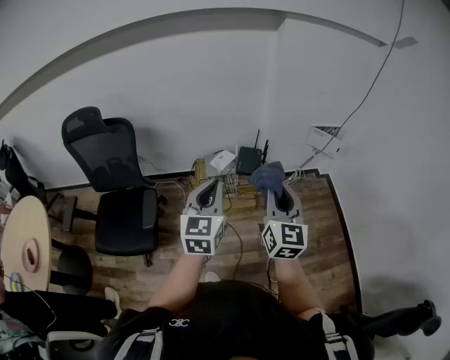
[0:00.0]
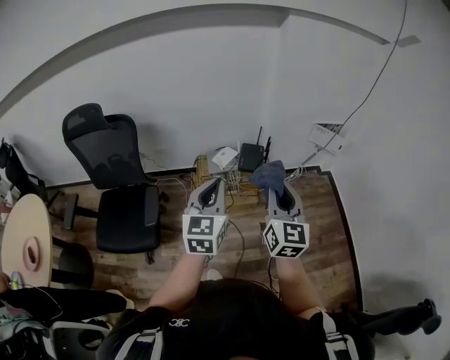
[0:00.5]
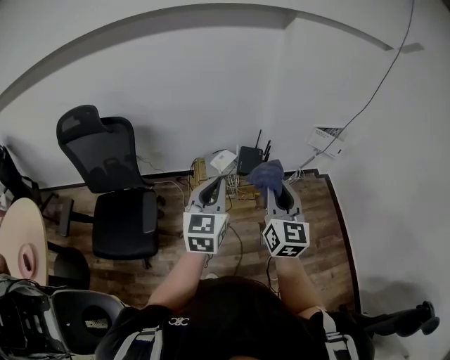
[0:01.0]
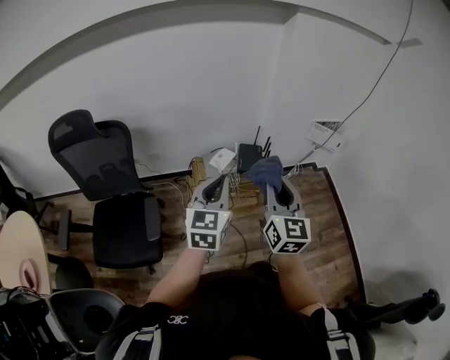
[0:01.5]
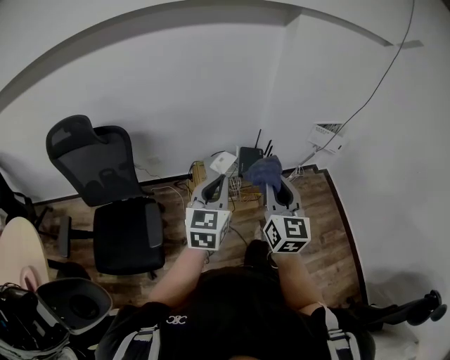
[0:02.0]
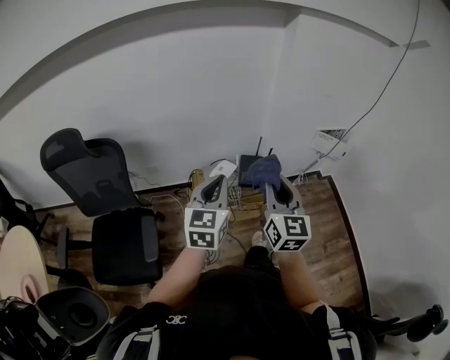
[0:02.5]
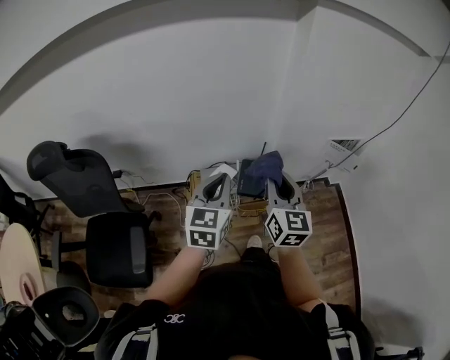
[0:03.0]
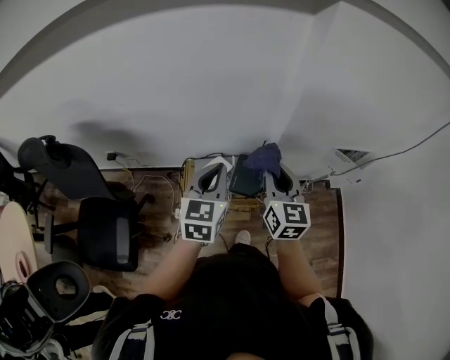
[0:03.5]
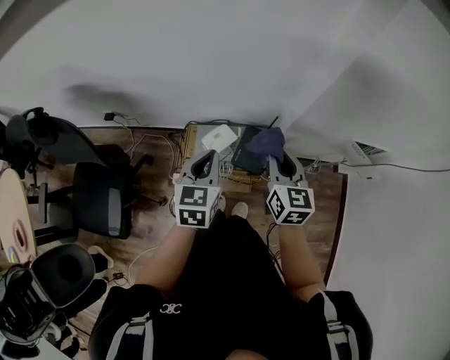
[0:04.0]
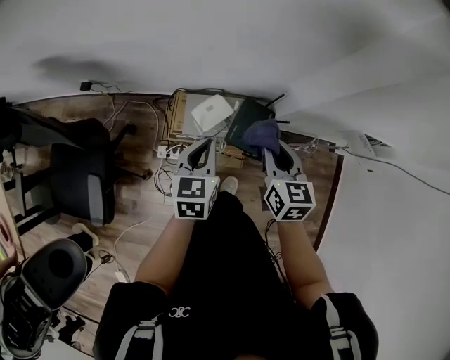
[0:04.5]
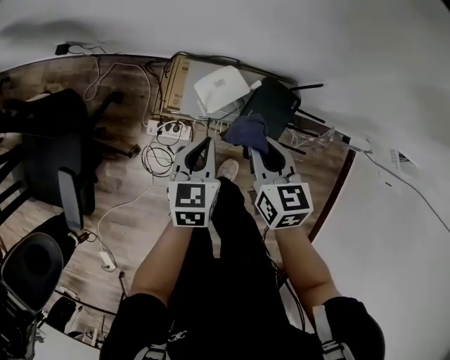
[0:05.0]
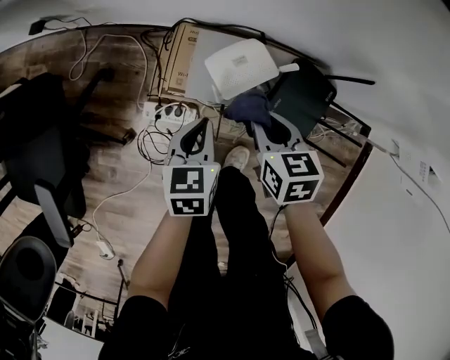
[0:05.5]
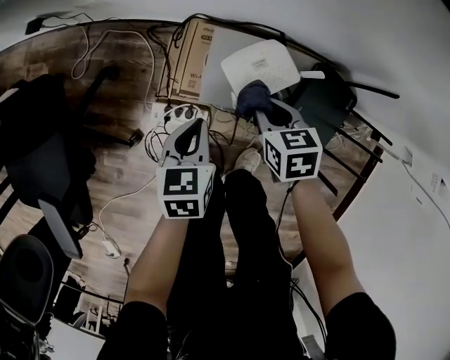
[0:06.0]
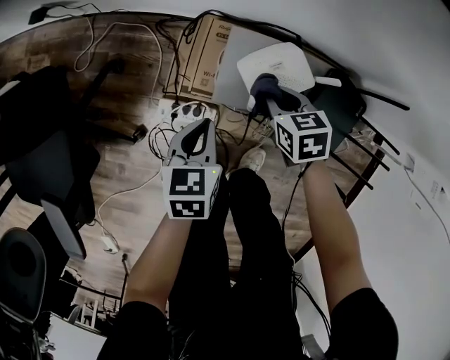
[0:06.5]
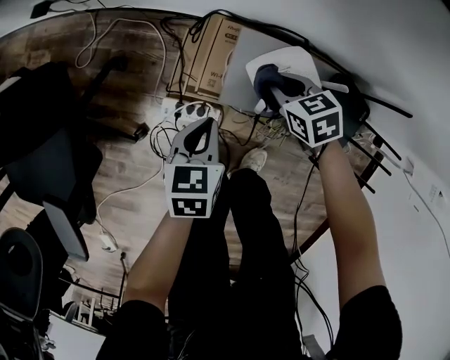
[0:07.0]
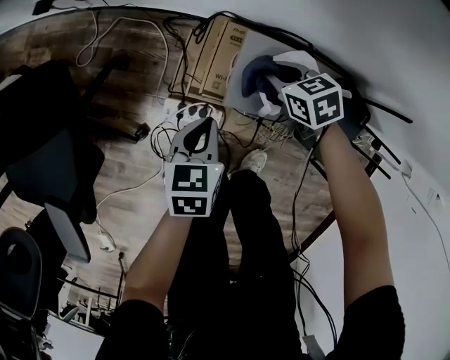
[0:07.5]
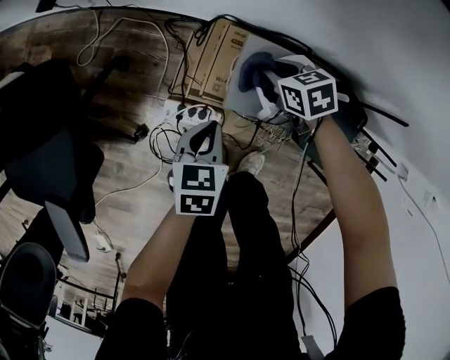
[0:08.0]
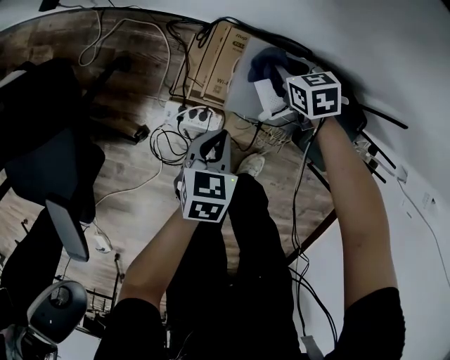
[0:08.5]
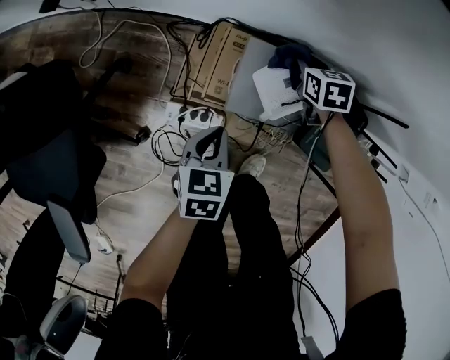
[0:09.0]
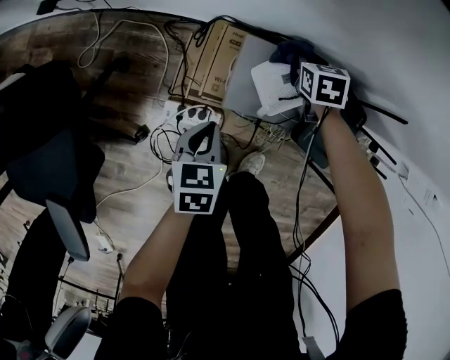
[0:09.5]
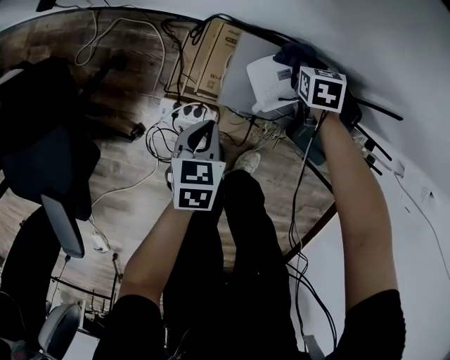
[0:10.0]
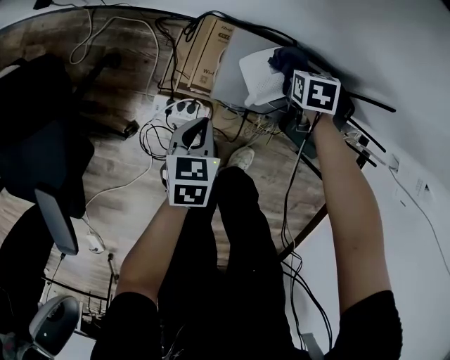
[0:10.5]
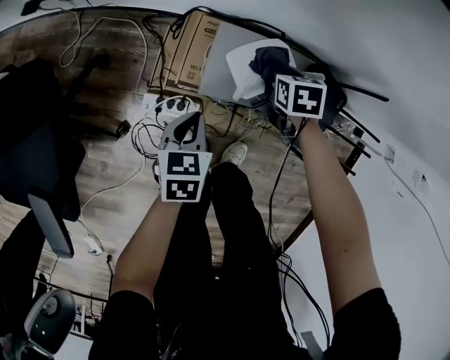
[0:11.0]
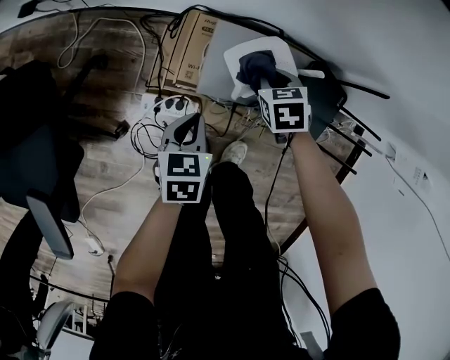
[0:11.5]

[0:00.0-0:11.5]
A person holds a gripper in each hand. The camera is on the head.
0:00.0 to 0:02.0: The right gripper goes roughly 15 cm to the left and forward, while the left gripper travels forward and to the left by some 10 cm.
0:02.0 to 0:04.0: Both grippers move forward, approximately 40 cm. The left gripper swivels about 30 degrees. The right gripper turns by some 30 degrees.
0:04.0 to 0:06.0: The grippers both shift downward by roughly 50 cm. The right gripper tilts its fingers approximately 40 degrees downward. The left gripper changes its angle by approximately 30 degrees.
0:06.0 to 0:07.5: The right gripper shifts some 10 cm forward, and changes its angle by about 20 degrees. The left gripper shifts by roughly 5 cm.
0:07.5 to 0:09.5: The right gripper moves approximately 15 cm, and swivels approximately 30 degrees.
0:09.5 to 0:11.5: The right gripper heads backward, covering about 10 cm.

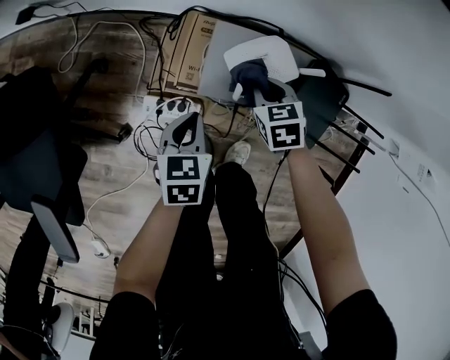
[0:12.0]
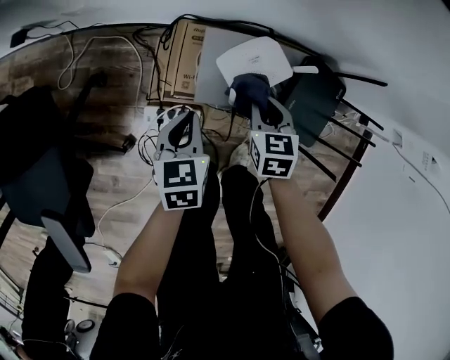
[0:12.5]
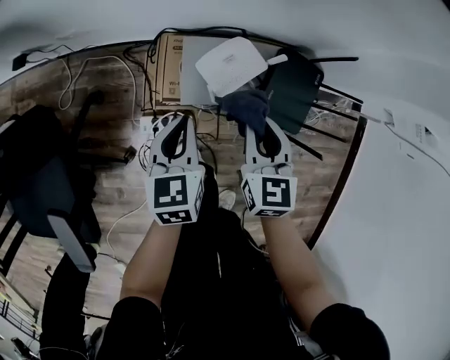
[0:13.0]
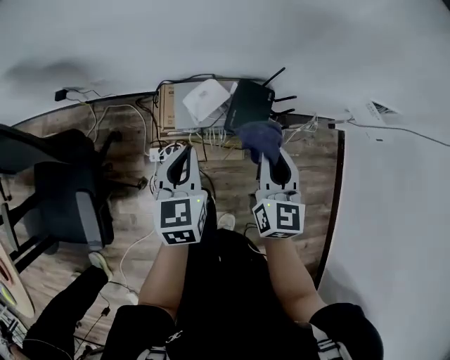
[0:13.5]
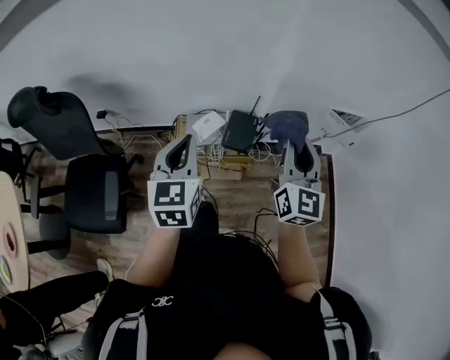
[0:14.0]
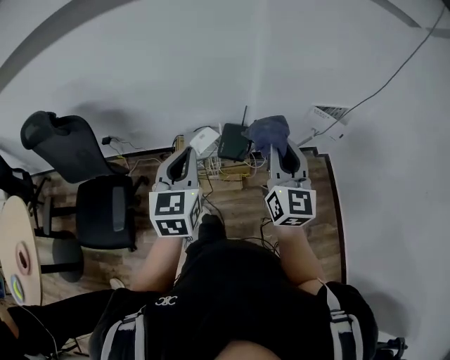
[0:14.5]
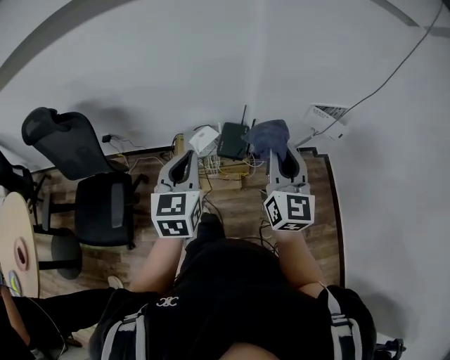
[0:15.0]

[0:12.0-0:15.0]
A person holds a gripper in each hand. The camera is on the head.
0:12.0 to 0:13.5: The two grippers go some 40 cm upward. The right gripper angles its fingers upward, by roughly 40 degrees. The left gripper changes its angle by approximately 20 degrees.
0:13.5 to 0:15.0: The left gripper travels upward and backward by some 40 cm, and turns by roughly 20 degrees; the right gripper travels upward, backward and to the right by some 40 cm, and swivels roughly 30 degrees.

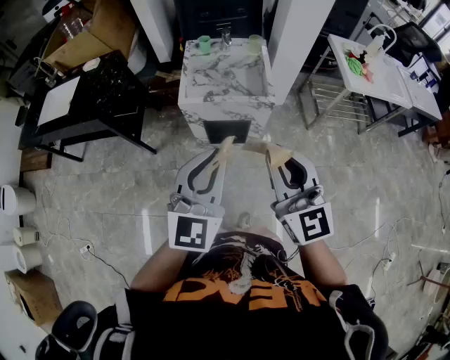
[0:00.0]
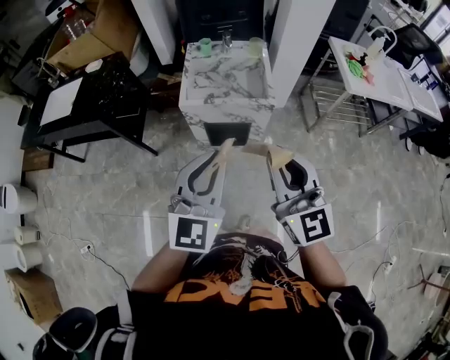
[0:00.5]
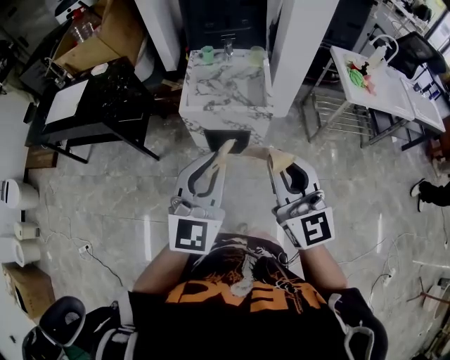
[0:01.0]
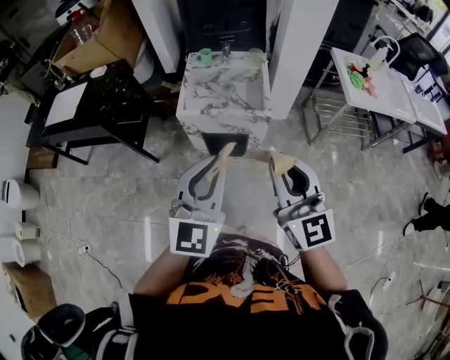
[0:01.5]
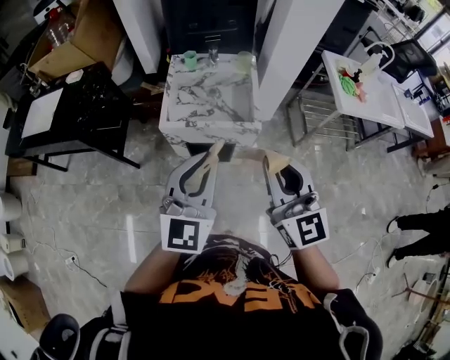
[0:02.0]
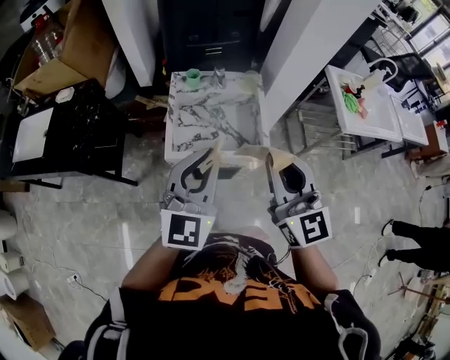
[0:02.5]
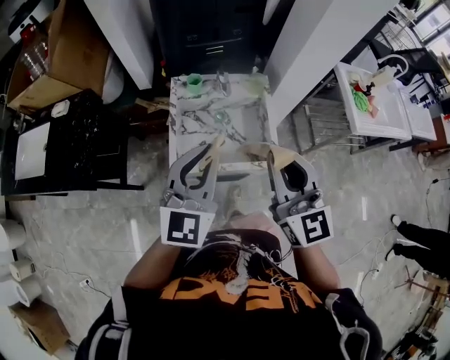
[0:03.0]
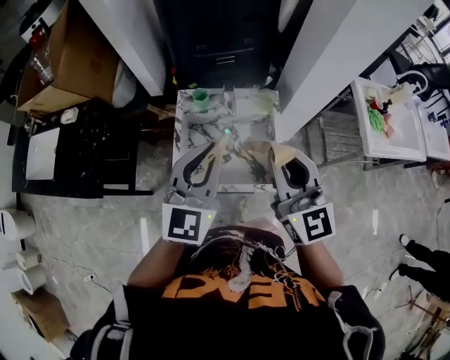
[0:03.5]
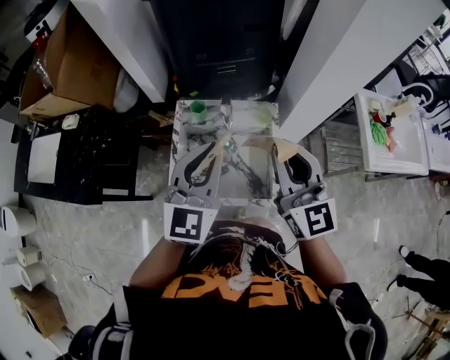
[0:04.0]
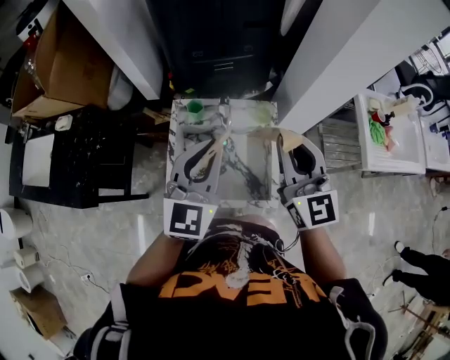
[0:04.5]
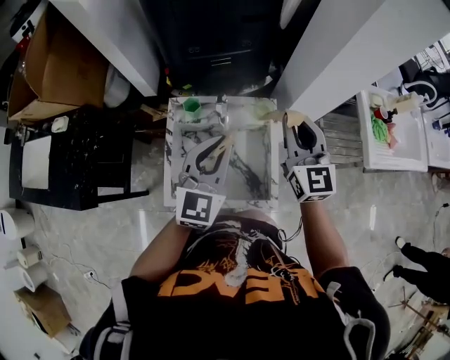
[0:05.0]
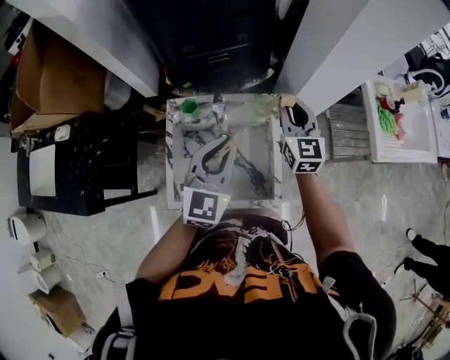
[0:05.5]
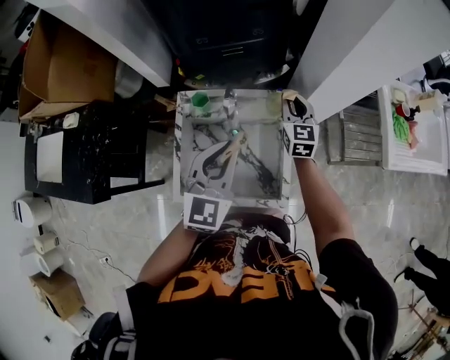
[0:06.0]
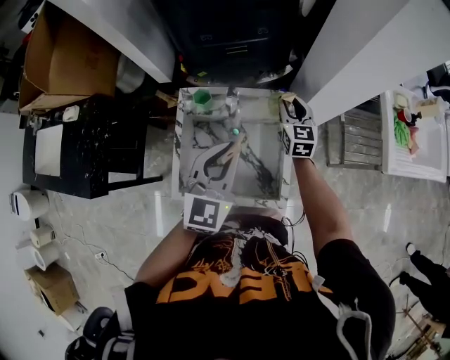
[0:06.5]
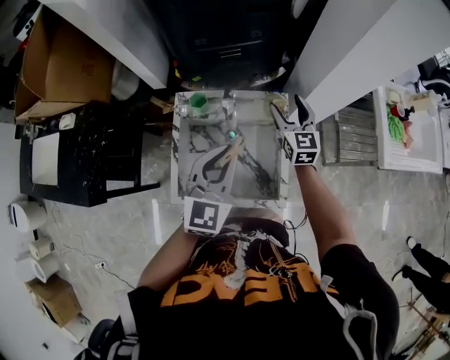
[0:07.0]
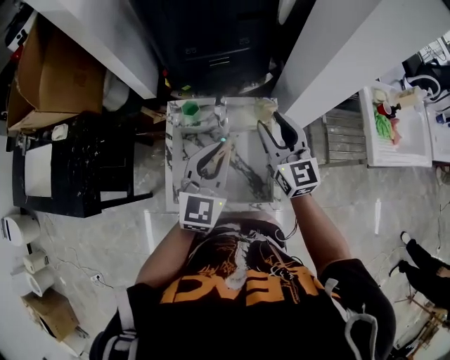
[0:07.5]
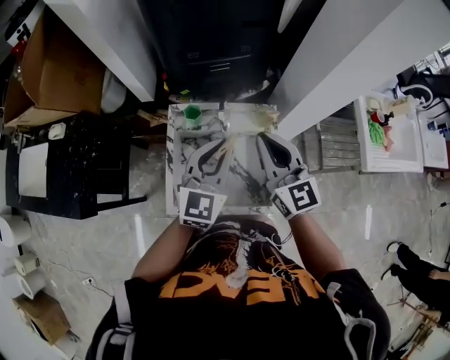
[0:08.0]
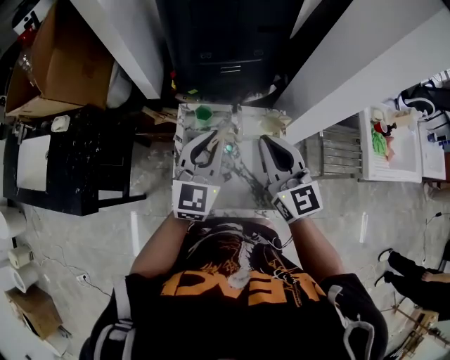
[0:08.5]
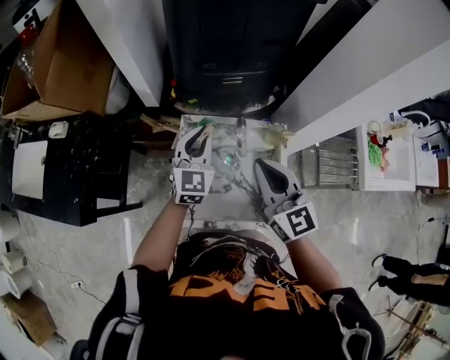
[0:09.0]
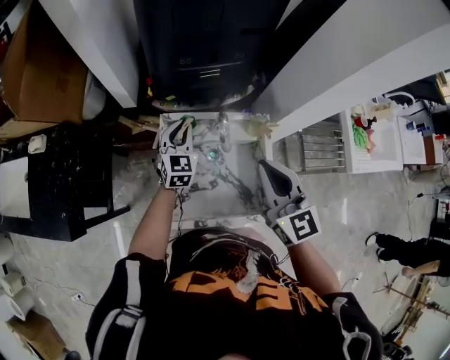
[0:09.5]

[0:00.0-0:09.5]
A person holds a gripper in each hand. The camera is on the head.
0:00.0 to 0:02.0: The left gripper heads forward, covering about 10 cm. Meanwhile the right gripper travels forward and to the right by about 10 cm.
0:02.0 to 0:04.0: The grippers both shift forward by approximately 40 cm.
0:04.0 to 0:05.5: The left gripper heads downward and forward, covering some 15 cm. Meanwhile the right gripper goes some 25 cm forward and downward.
0:05.5 to 0:07.5: The right gripper goes roughly 10 cm to the left and backward, goes downward and returns, roughly 10 cm each way, and opens its fingers.
0:07.5 to 0:09.5: The right gripper travels to the left and upward by some 10 cm, and closes. The left gripper travels forward, to the left and downward by approximately 25 cm.

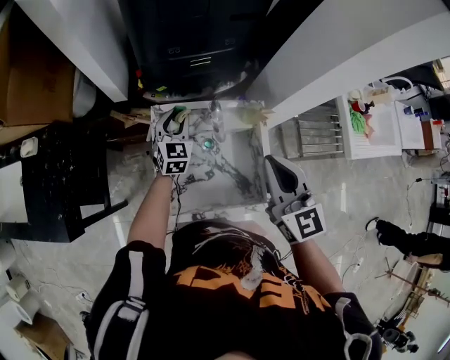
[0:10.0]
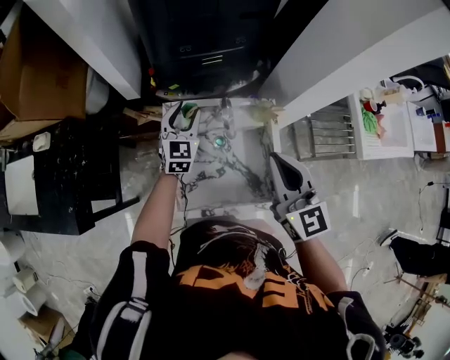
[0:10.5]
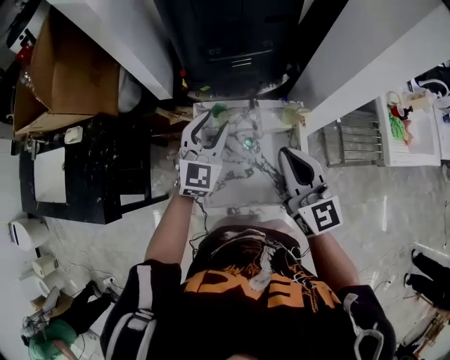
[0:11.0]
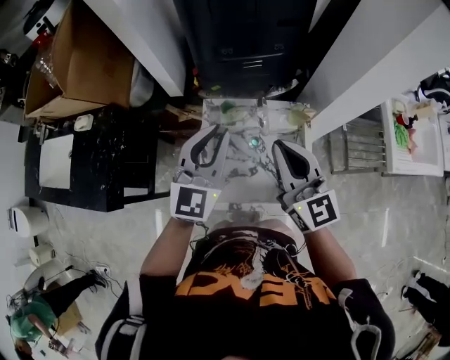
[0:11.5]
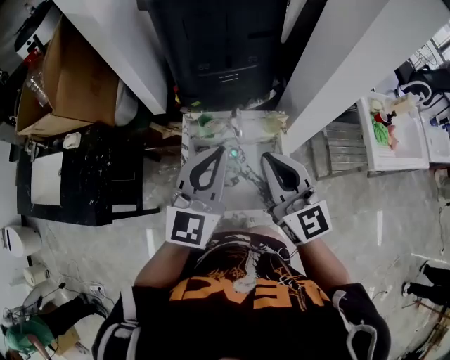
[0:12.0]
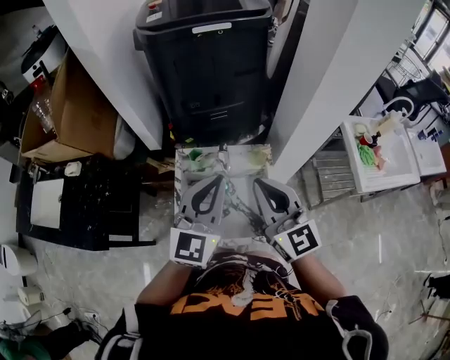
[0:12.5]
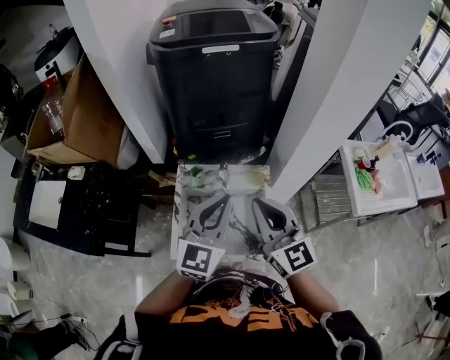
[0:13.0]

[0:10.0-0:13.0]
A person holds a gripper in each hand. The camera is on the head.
0:10.0 to 0:11.5: The right gripper goes about 5 cm to the left. Meanwhile the left gripper shifts roughly 30 cm upward and backward, and turns by about 20 degrees.
0:11.5 to 0:13.0: Both grippers travel together to the right, backward and upward, some 15 cm.
